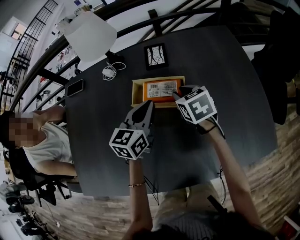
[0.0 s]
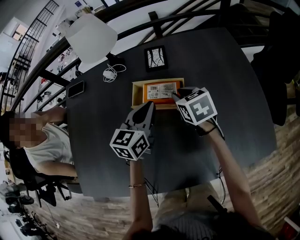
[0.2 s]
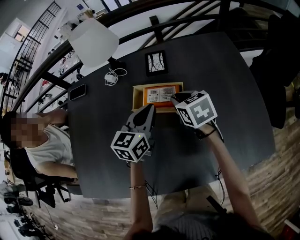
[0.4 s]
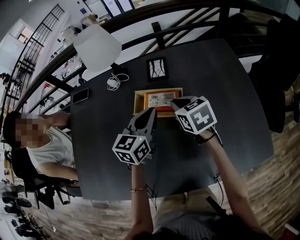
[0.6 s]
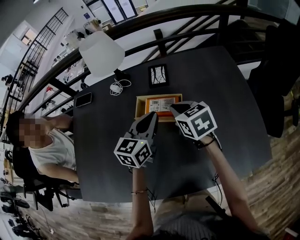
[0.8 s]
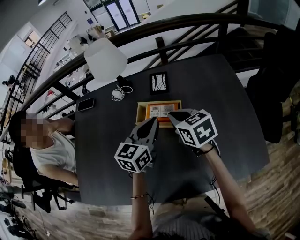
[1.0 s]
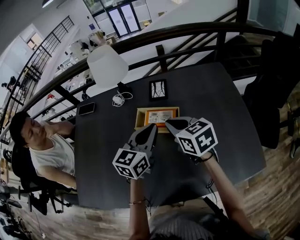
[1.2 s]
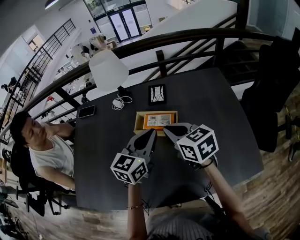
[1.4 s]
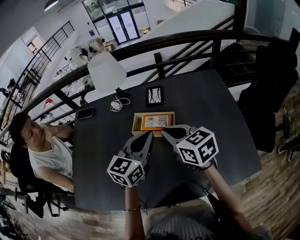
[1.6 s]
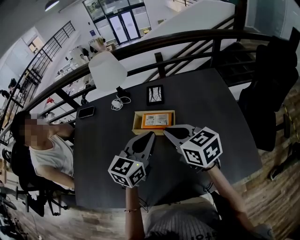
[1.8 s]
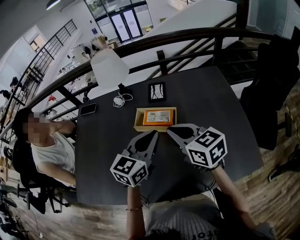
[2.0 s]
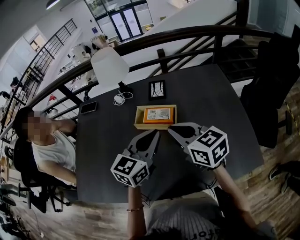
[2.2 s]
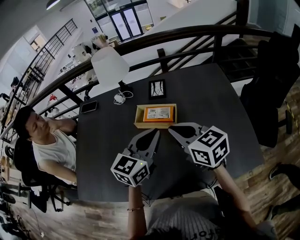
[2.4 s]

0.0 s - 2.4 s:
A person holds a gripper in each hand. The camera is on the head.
0.0 s - 1.2 s: The right gripper heads upward and backward, covering approximately 15 cm; the left gripper is displaced upward by roughly 10 cm.
1.2 s - 2.4 s: Both grippers move backward, roughly 5 cm.

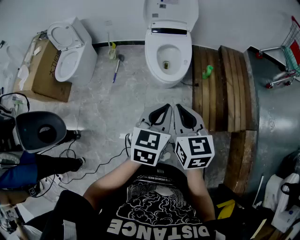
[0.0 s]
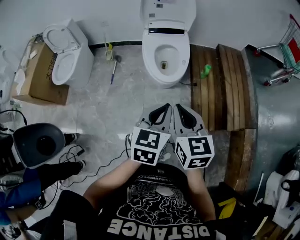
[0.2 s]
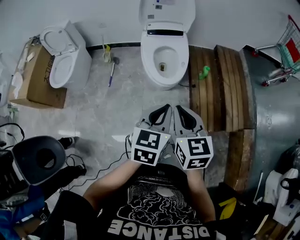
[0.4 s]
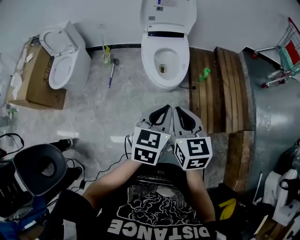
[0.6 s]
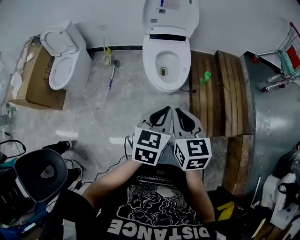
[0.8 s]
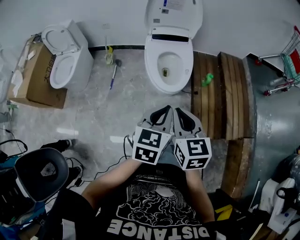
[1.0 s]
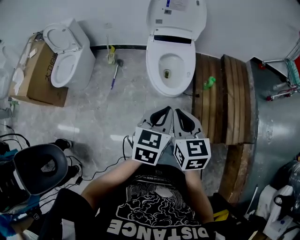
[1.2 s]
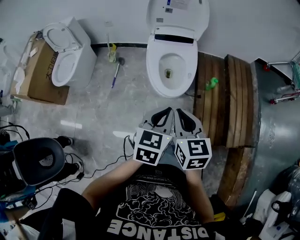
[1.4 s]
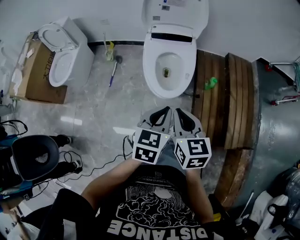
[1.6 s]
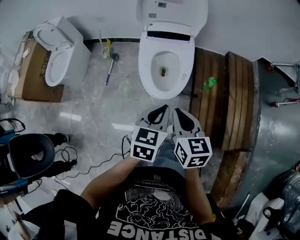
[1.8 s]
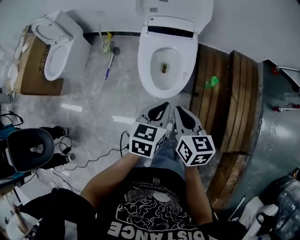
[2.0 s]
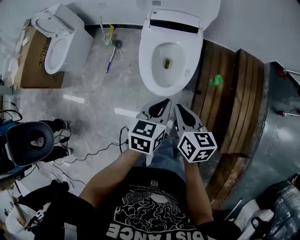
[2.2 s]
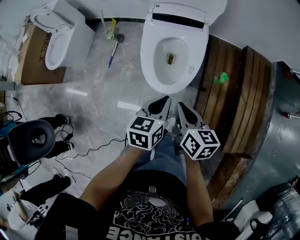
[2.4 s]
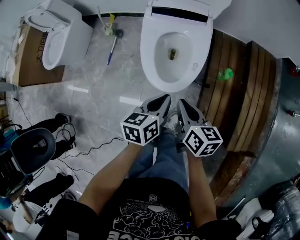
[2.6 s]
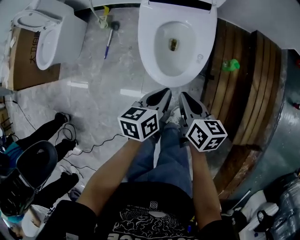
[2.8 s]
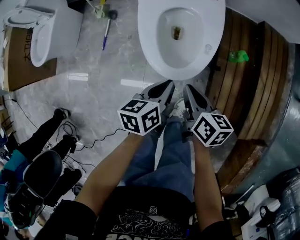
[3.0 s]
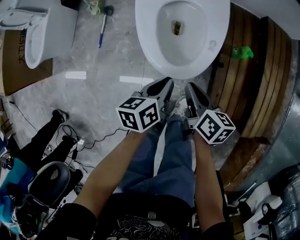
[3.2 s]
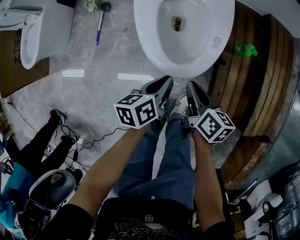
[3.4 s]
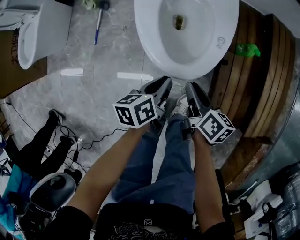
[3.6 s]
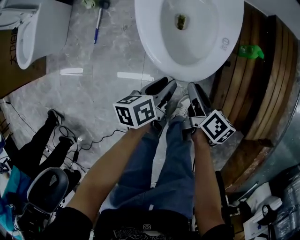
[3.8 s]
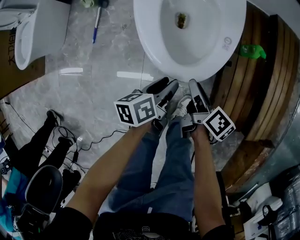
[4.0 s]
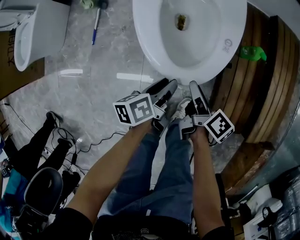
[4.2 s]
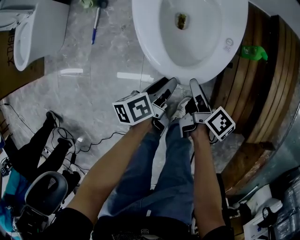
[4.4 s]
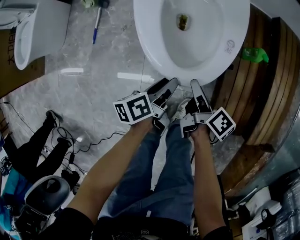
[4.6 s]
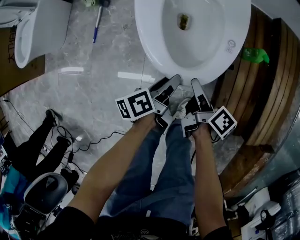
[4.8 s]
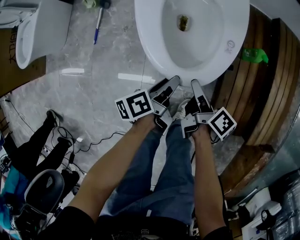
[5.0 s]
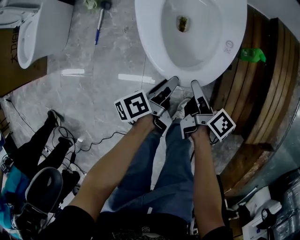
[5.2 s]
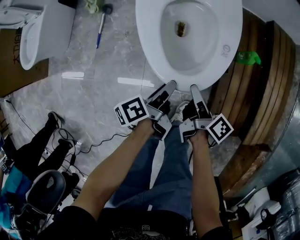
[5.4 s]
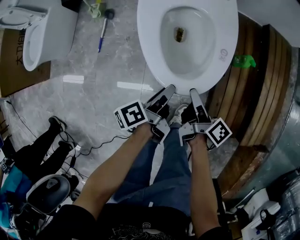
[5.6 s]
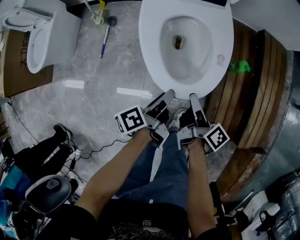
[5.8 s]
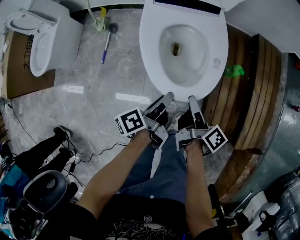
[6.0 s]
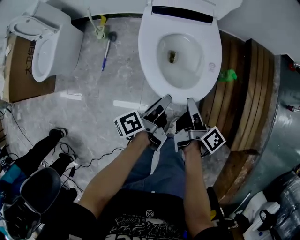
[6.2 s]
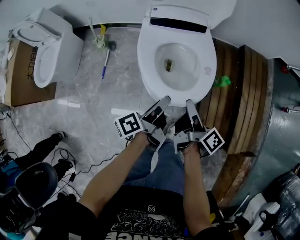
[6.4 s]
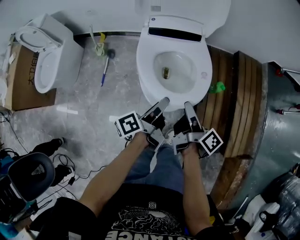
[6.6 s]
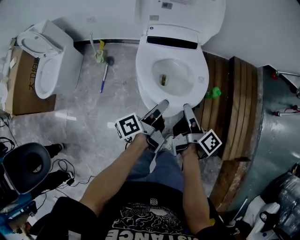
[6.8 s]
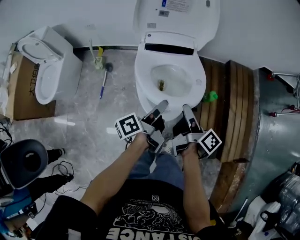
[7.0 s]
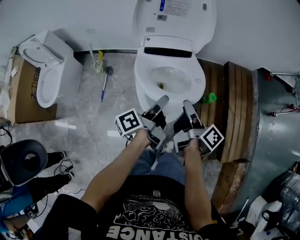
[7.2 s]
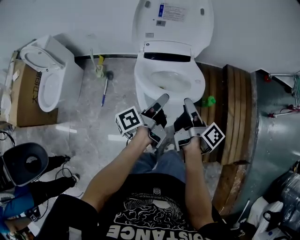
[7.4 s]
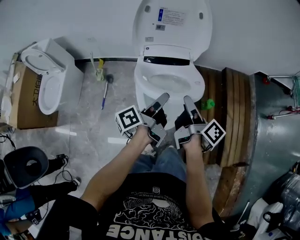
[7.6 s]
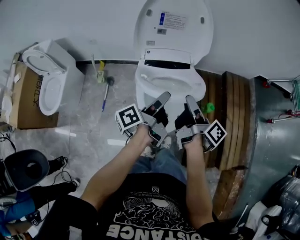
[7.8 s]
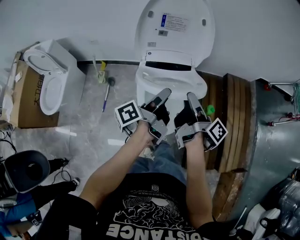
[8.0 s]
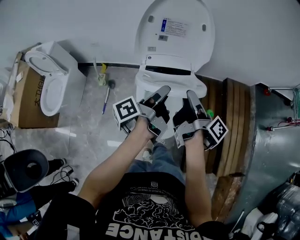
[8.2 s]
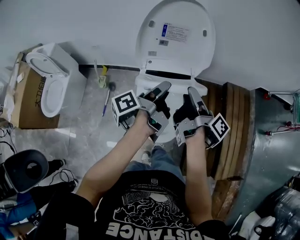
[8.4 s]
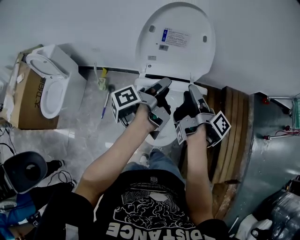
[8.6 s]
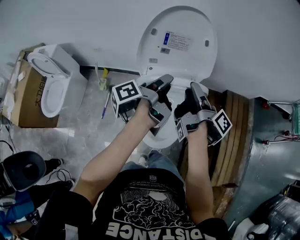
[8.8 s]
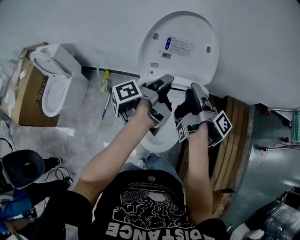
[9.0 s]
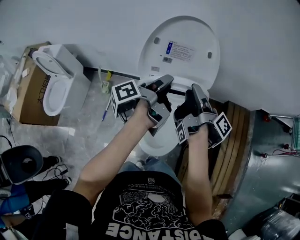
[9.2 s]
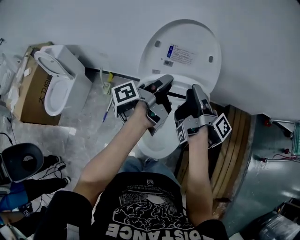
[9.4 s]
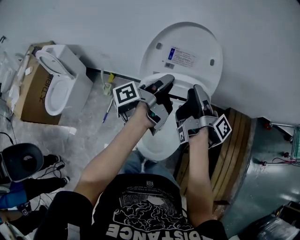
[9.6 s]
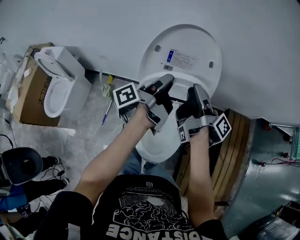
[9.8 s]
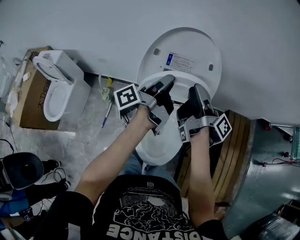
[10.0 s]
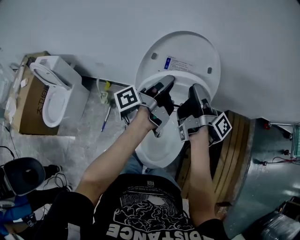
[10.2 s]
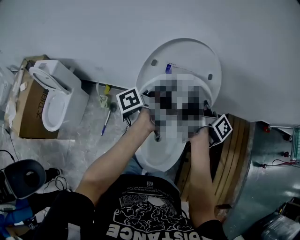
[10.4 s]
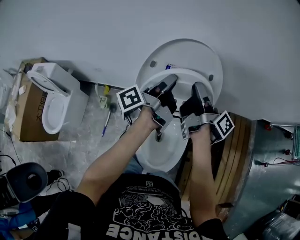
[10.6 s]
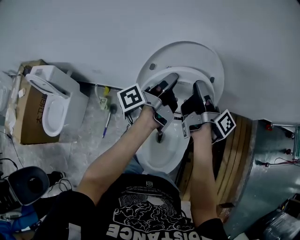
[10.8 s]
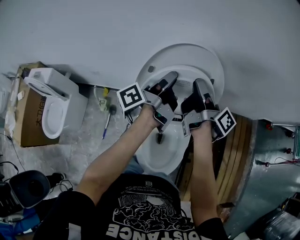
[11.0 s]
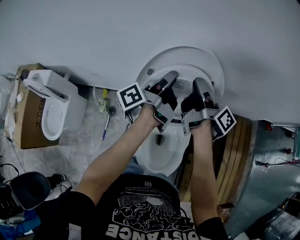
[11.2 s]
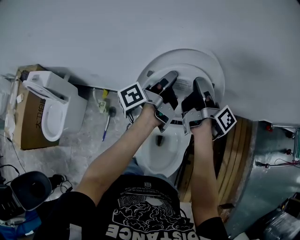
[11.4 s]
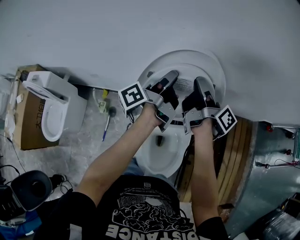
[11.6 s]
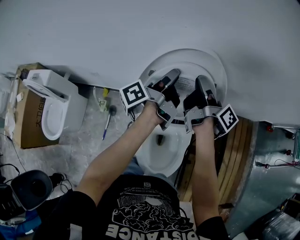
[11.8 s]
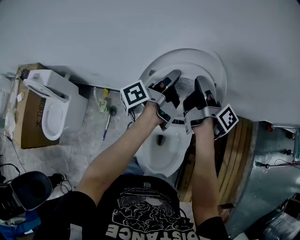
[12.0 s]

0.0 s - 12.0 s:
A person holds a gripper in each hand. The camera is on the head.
0.0 s - 1.6 s: The right gripper changes place by roughly 20 cm.
1.6 s - 3.0 s: The right gripper heads downward, covering some 25 cm, and turns by about 30 degrees.
3.0 s - 4.4 s: The right gripper travels downward by roughly 15 cm, swivels approximately 30 degrees, and opens.
4.4 s - 6.0 s: The right gripper travels upward by approximately 15 cm.
6.0 s - 7.6 s: The right gripper heads upward, covering roughly 20 cm.
7.6 s - 9.0 s: The right gripper moves some 20 cm, and rotates approximately 20 degrees.
9.0 s - 10.4 s: The right gripper moves roughly 10 cm, and closes up.
10.4 s - 12.0 s: The right gripper moves about 15 cm.

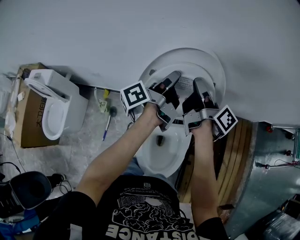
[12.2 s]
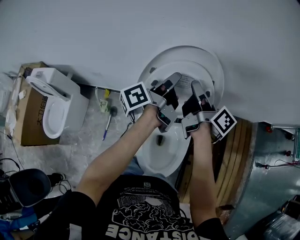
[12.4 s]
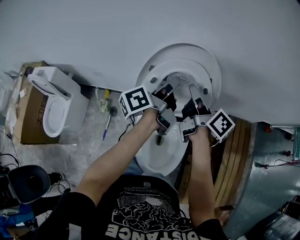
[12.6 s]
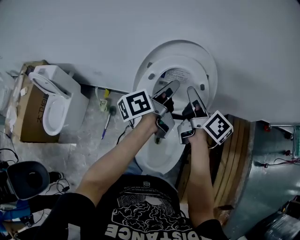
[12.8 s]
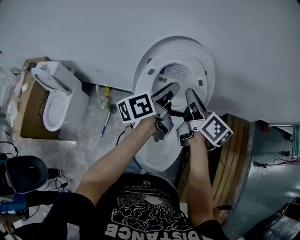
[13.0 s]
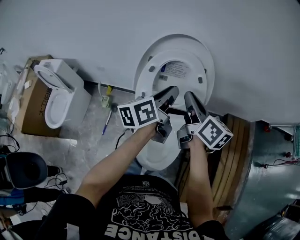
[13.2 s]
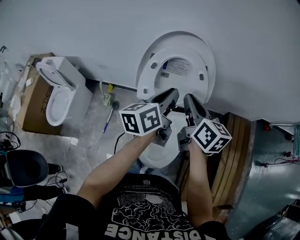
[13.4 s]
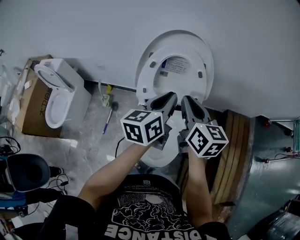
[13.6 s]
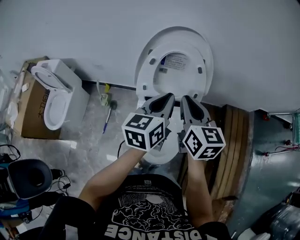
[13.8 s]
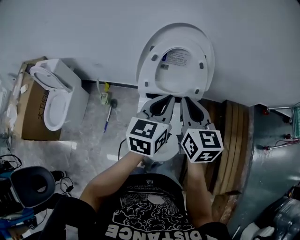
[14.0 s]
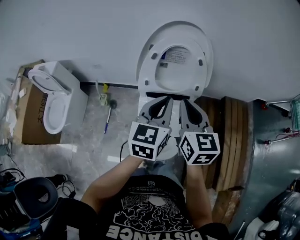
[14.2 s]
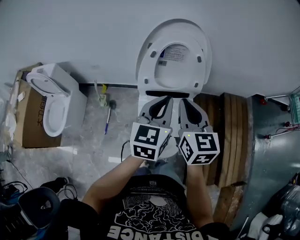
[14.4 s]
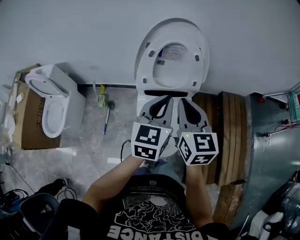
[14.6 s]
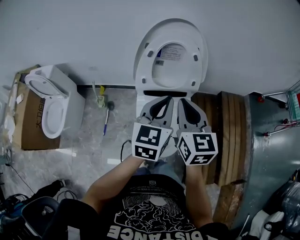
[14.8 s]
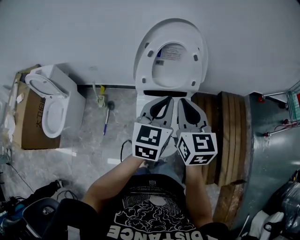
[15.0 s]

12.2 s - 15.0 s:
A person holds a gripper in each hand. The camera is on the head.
12.2 s - 13.6 s: The right gripper changes place by roughly 20 cm, and rolls counterclockwise, seen from behind, by some 60 degrees.
13.6 s - 15.0 s: The right gripper moves about 10 cm, and turns by about 20 degrees.

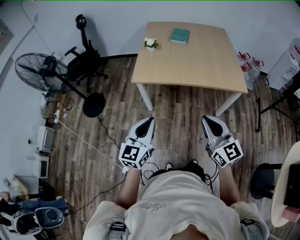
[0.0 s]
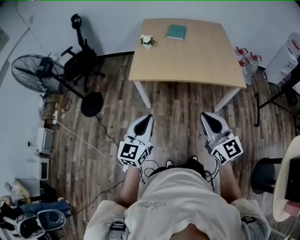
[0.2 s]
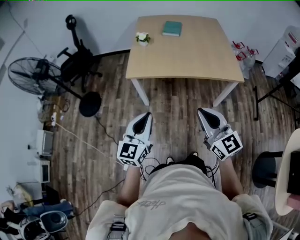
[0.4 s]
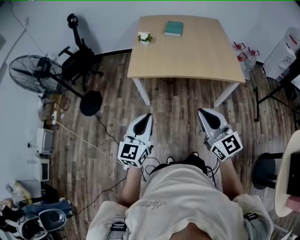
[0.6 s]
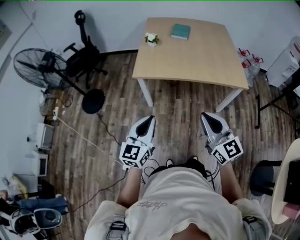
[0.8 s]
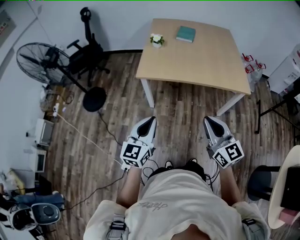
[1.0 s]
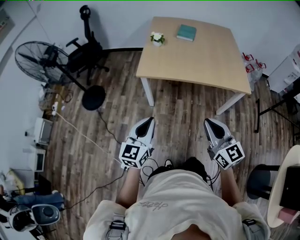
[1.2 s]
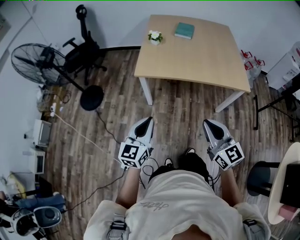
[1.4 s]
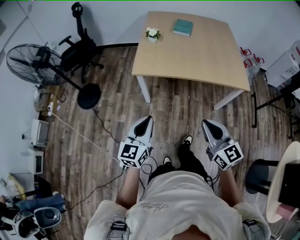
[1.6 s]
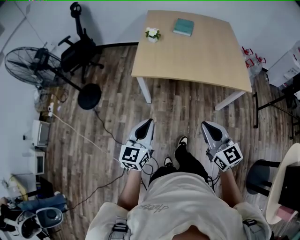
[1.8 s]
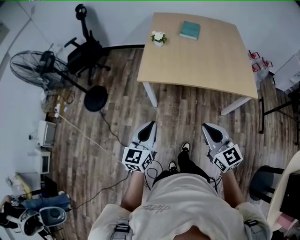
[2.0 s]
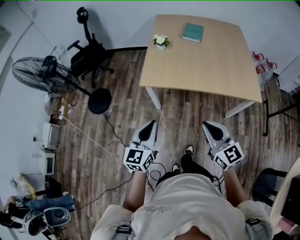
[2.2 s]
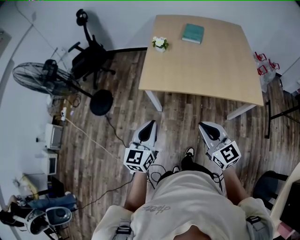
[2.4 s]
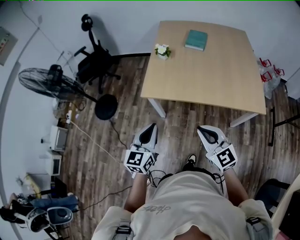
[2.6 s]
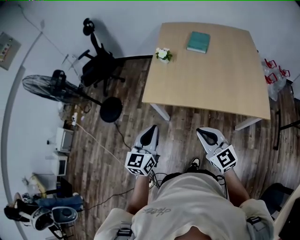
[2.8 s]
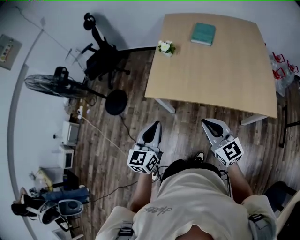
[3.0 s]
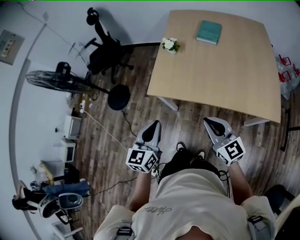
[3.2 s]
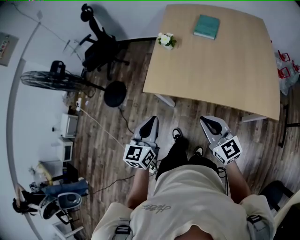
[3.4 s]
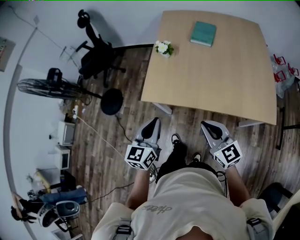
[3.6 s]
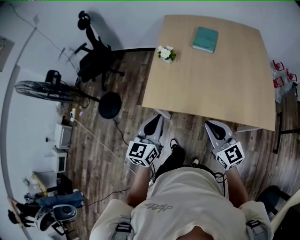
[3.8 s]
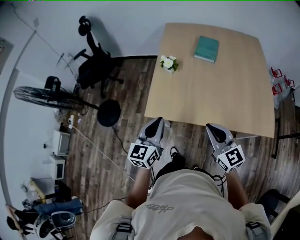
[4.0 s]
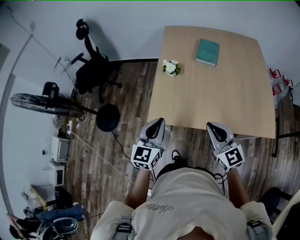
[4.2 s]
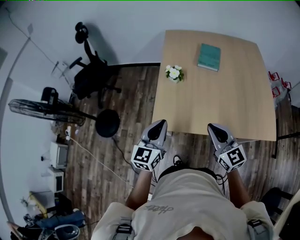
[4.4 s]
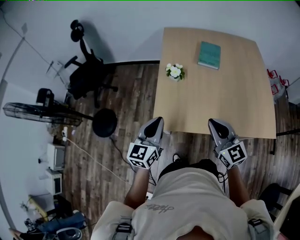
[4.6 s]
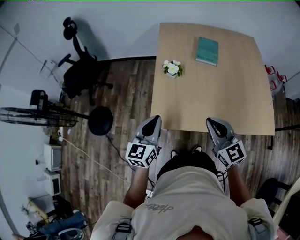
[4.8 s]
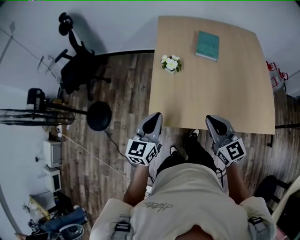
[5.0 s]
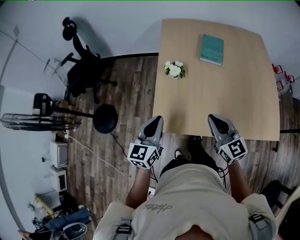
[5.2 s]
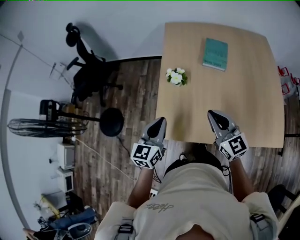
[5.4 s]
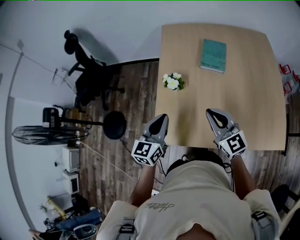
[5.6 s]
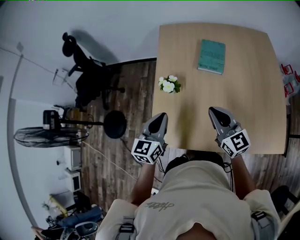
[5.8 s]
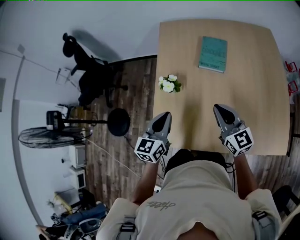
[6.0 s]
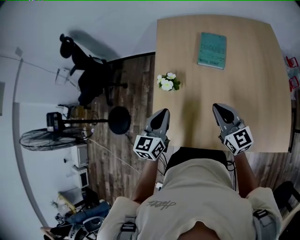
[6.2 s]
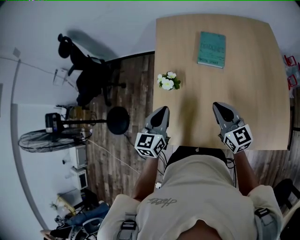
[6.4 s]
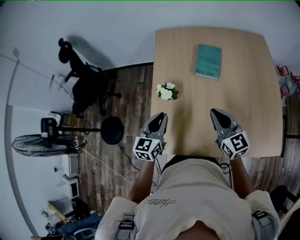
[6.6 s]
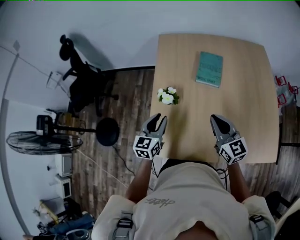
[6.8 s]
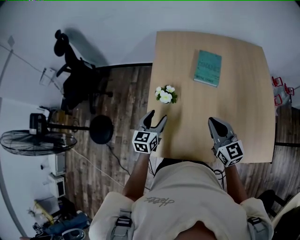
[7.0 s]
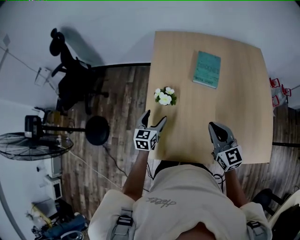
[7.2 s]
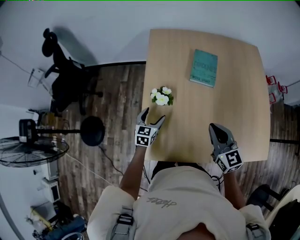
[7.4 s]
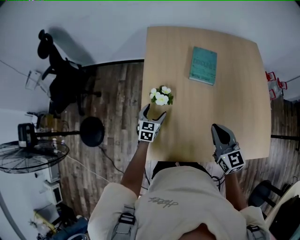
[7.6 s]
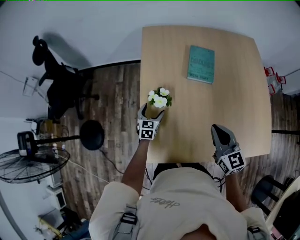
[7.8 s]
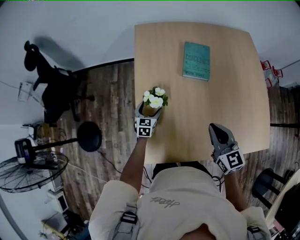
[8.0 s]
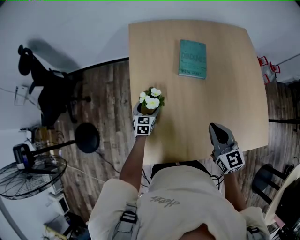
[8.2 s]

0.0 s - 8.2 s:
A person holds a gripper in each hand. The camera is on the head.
0.0 s - 1.6 s: The left gripper moves roughly 5 cm.
1.6 s - 3.2 s: The left gripper moves forward and to the right, about 20 cm. The right gripper shifts about 25 cm forward.
3.2 s - 5.0 s: Both grippers travel together forward, some 25 cm.
5.0 s - 6.6 s: The two grippers go some 20 cm forward and to the right.
6.6 s - 8.2 s: The left gripper moves downward and forward, about 30 cm, and opens its fingers.
